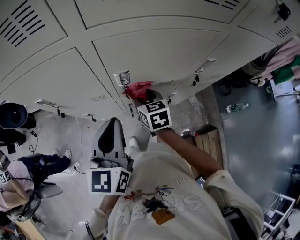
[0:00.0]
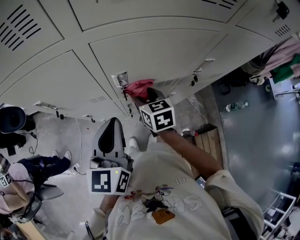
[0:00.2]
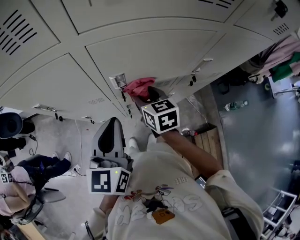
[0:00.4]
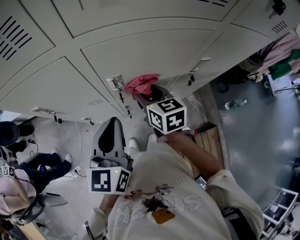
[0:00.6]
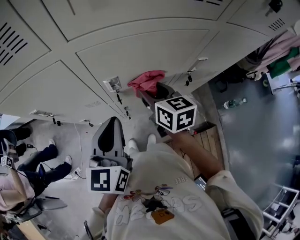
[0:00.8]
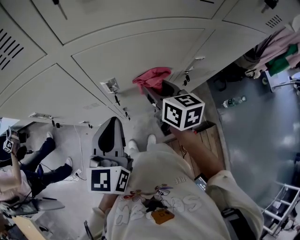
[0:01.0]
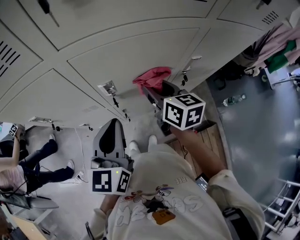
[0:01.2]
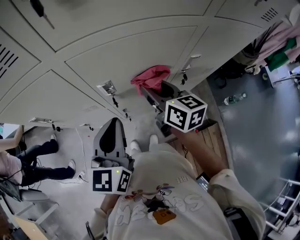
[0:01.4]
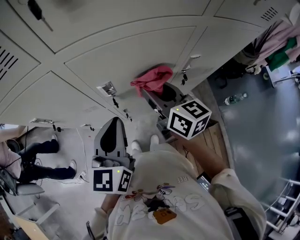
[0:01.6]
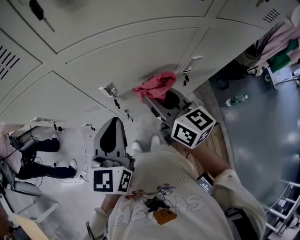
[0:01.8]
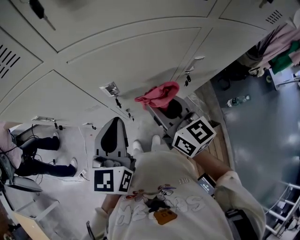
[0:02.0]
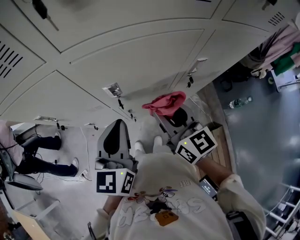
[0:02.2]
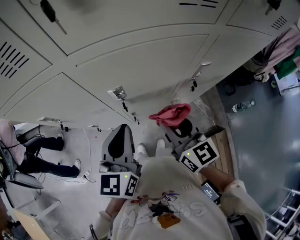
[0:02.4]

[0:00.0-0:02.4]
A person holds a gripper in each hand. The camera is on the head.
0:00.0 to 0:01.2: The right gripper heads upward and to the right, covering roughly 15 cm, and swivels approximately 20 degrees.
0:01.2 to 0:02.4: The right gripper is displaced backward by some 10 cm.

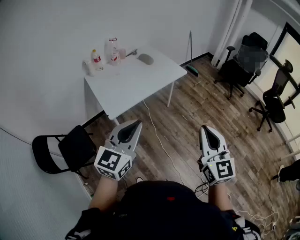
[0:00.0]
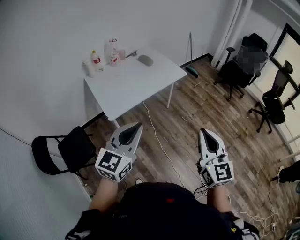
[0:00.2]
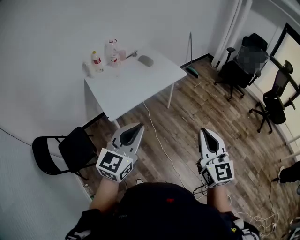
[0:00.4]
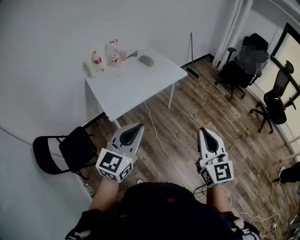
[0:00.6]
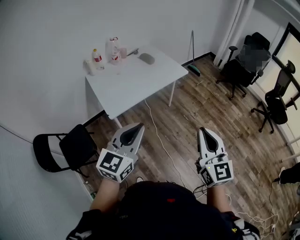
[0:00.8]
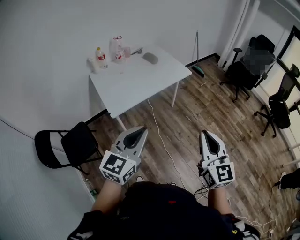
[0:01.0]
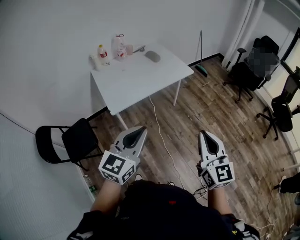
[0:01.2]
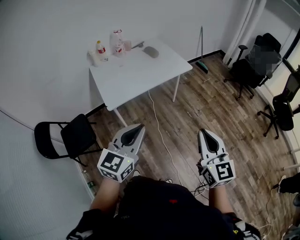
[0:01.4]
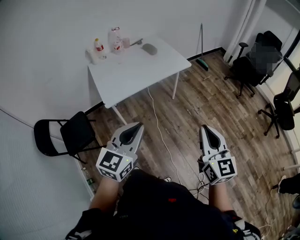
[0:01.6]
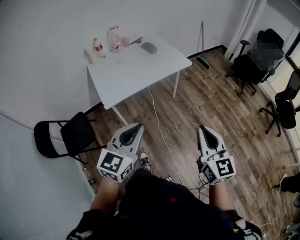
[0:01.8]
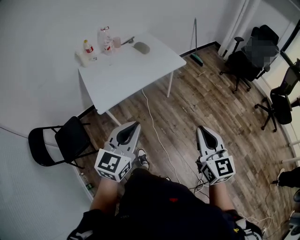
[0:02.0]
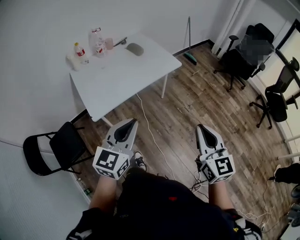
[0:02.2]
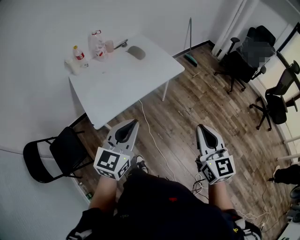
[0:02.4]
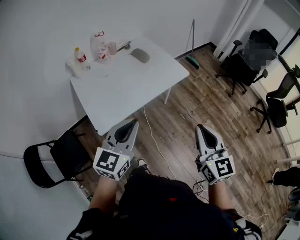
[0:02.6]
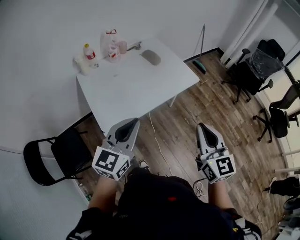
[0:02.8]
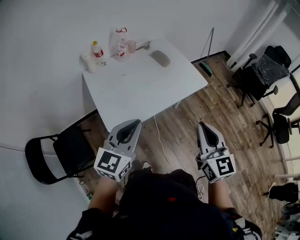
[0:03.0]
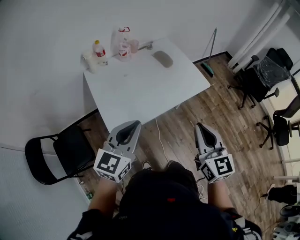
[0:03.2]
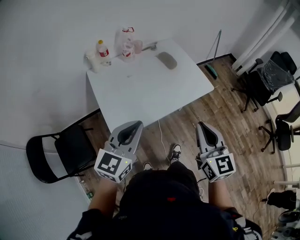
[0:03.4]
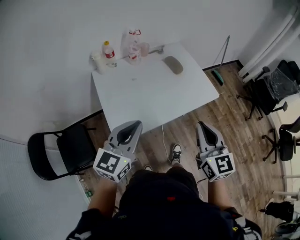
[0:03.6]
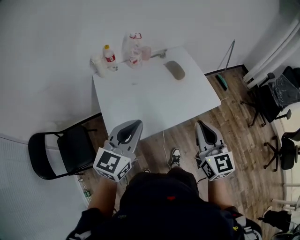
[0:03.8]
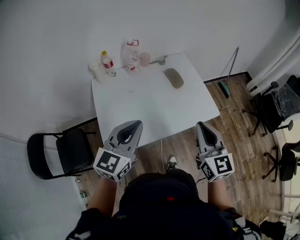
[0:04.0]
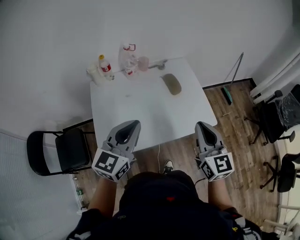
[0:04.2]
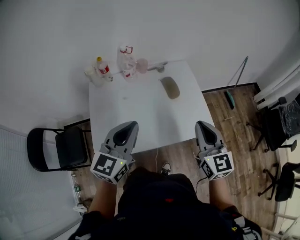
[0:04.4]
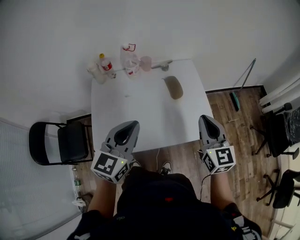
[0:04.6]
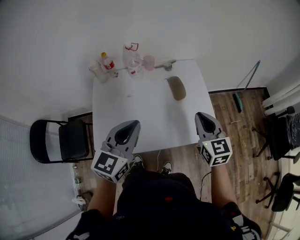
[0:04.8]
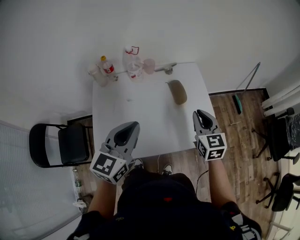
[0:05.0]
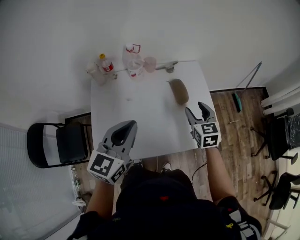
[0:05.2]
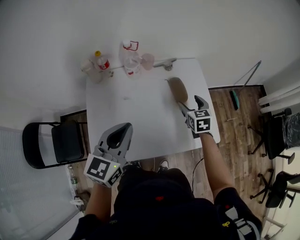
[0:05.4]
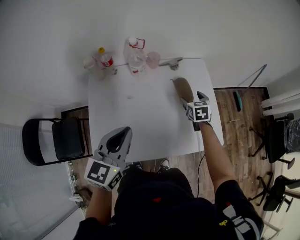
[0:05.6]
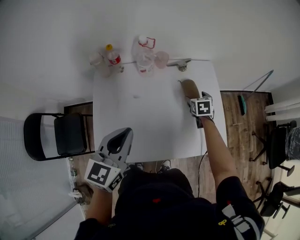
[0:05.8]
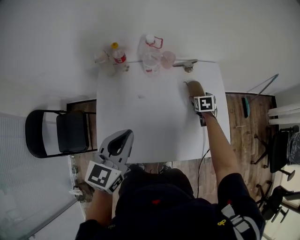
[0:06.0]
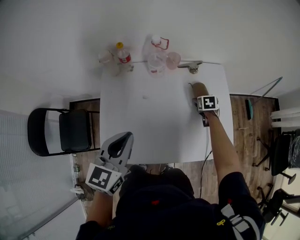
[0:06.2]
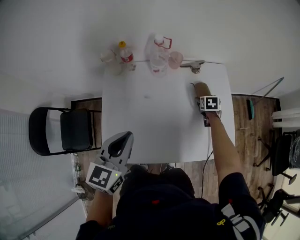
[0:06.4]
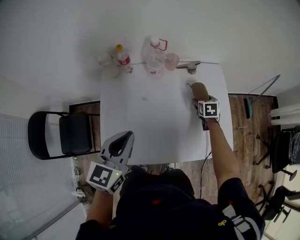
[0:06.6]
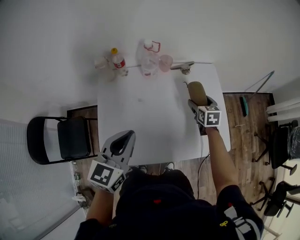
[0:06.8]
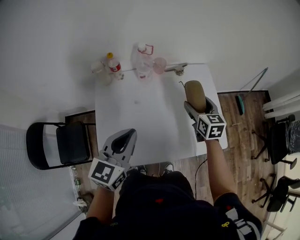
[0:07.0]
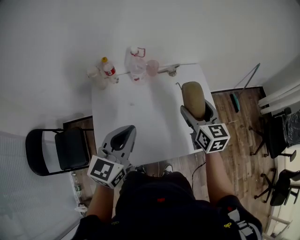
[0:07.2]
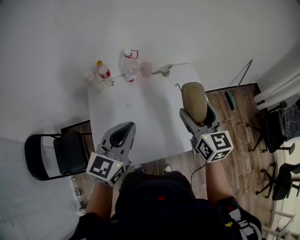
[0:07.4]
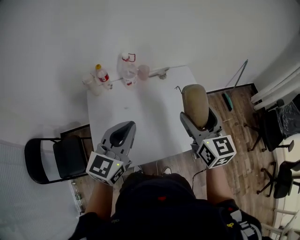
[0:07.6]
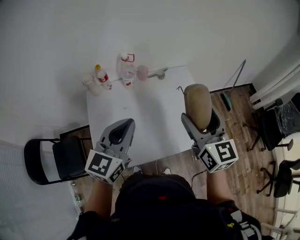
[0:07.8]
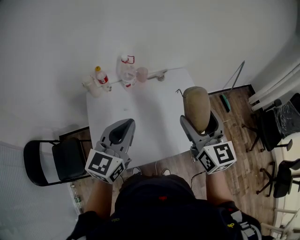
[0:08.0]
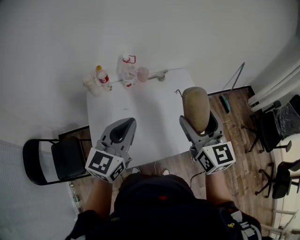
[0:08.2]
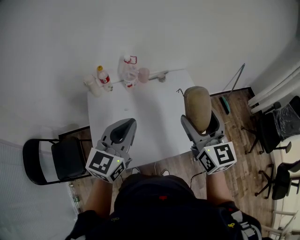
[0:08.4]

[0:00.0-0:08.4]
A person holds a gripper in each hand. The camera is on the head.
0:00.0 to 0:01.4: Both grippers travel together to the right, about 5 cm.
0:01.4 to 0:02.8: Both grippers move forward and to the left, some 25 cm.
0:02.8 to 0:04.2: Both grippers travel together forward, some 25 cm.
0:04.2 to 0:05.6: The right gripper is displaced forward and downward by approximately 40 cm, angles its fingers downward, by roughly 40 degrees, and opens up. Meanwhile the left gripper is displaced forward and downward by roughly 15 cm.
0:05.6 to 0:07.0: The right gripper shifts approximately 10 cm upward.
0:07.0 to 0:08.4: The right gripper is displaced upward and backward by roughly 25 cm, and swivels roughly 30 degrees; the left gripper heads upward, covering approximately 5 cm.

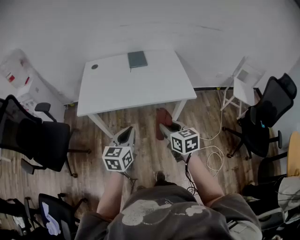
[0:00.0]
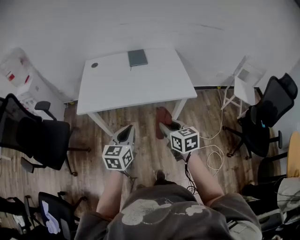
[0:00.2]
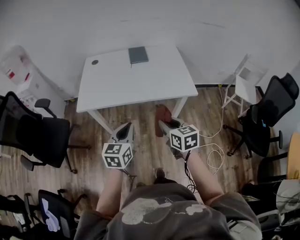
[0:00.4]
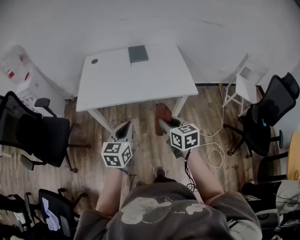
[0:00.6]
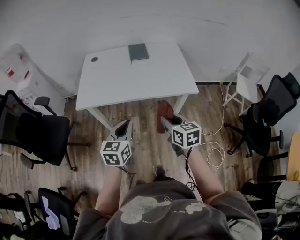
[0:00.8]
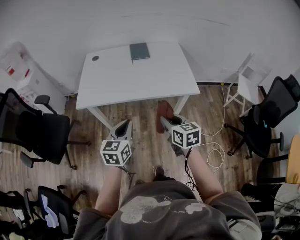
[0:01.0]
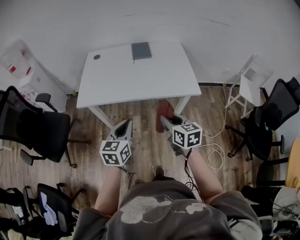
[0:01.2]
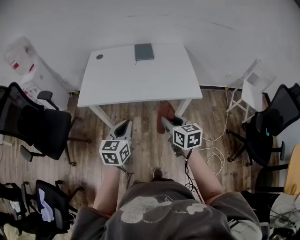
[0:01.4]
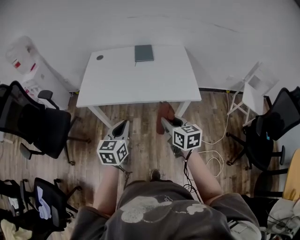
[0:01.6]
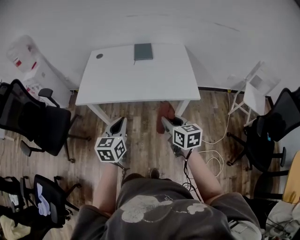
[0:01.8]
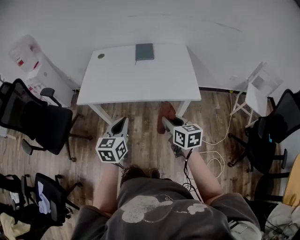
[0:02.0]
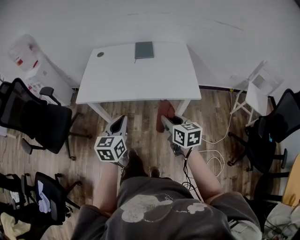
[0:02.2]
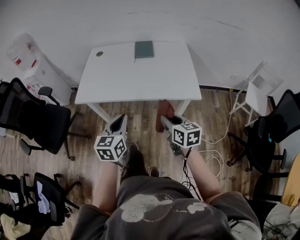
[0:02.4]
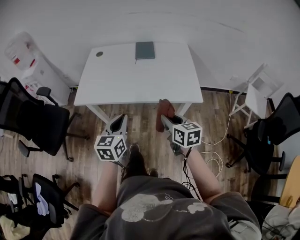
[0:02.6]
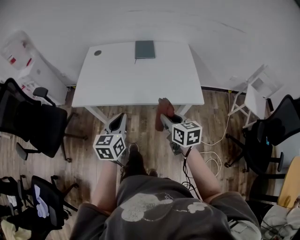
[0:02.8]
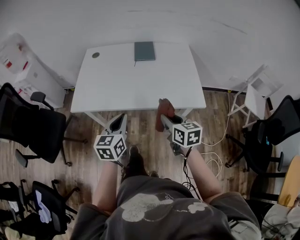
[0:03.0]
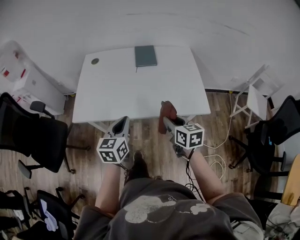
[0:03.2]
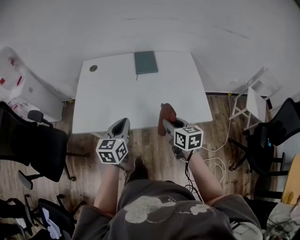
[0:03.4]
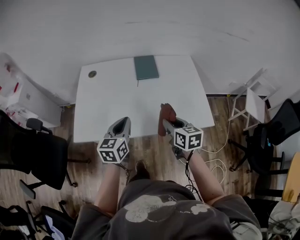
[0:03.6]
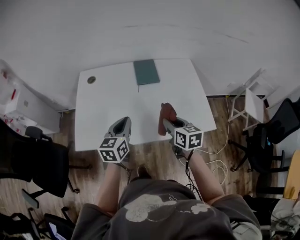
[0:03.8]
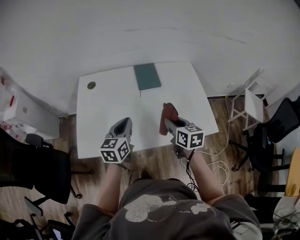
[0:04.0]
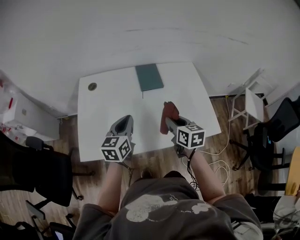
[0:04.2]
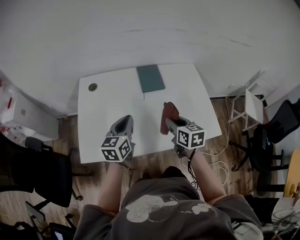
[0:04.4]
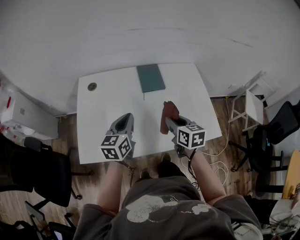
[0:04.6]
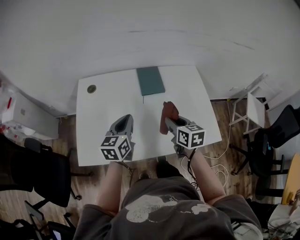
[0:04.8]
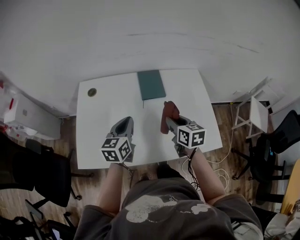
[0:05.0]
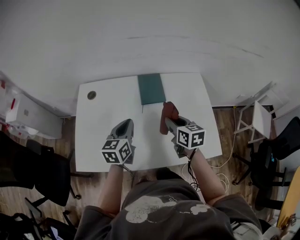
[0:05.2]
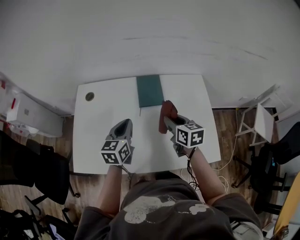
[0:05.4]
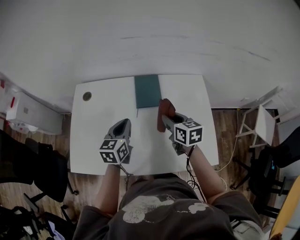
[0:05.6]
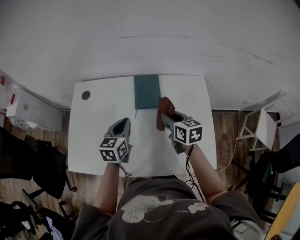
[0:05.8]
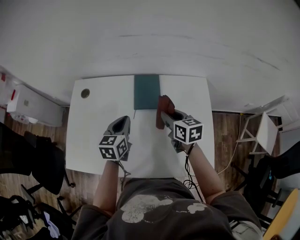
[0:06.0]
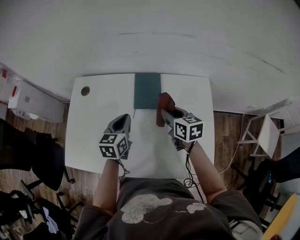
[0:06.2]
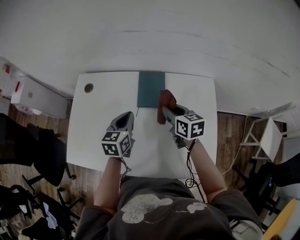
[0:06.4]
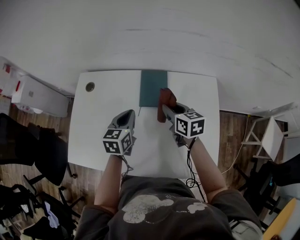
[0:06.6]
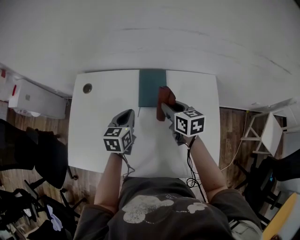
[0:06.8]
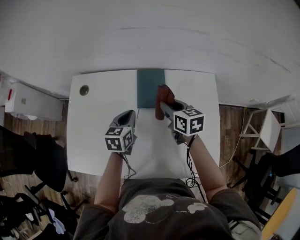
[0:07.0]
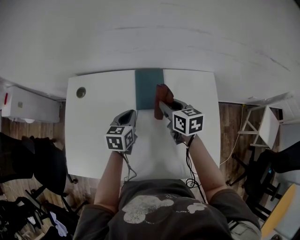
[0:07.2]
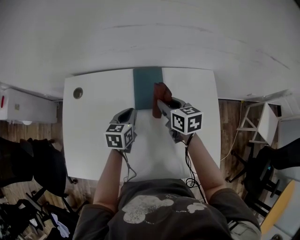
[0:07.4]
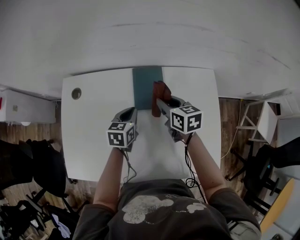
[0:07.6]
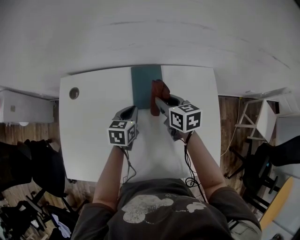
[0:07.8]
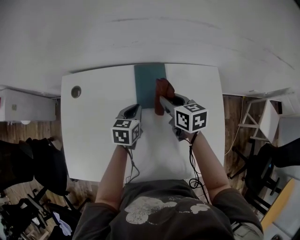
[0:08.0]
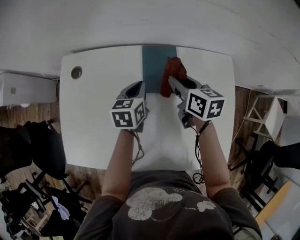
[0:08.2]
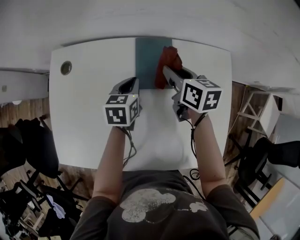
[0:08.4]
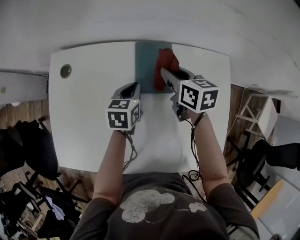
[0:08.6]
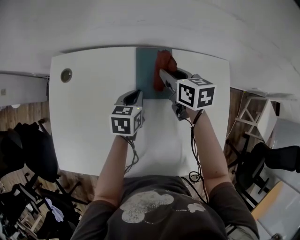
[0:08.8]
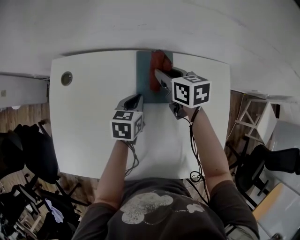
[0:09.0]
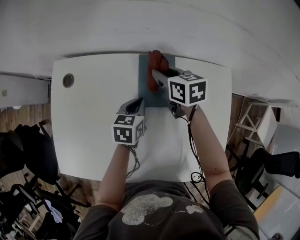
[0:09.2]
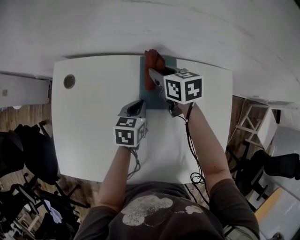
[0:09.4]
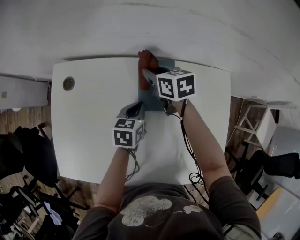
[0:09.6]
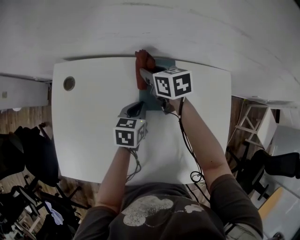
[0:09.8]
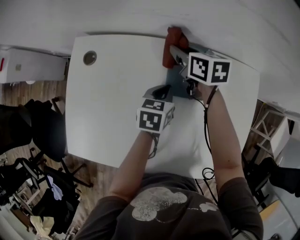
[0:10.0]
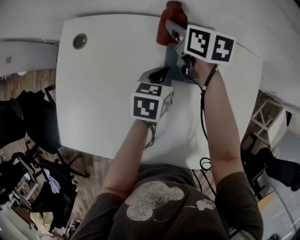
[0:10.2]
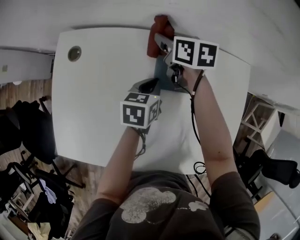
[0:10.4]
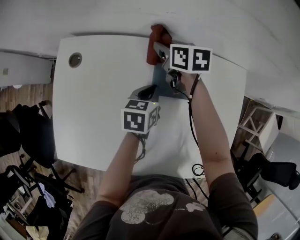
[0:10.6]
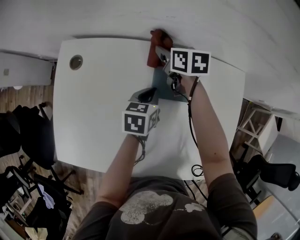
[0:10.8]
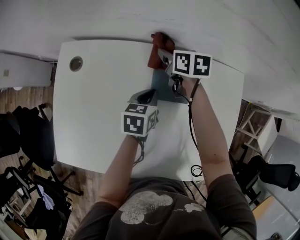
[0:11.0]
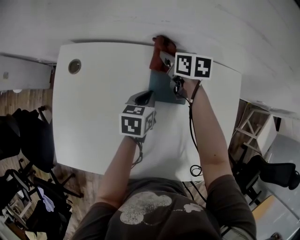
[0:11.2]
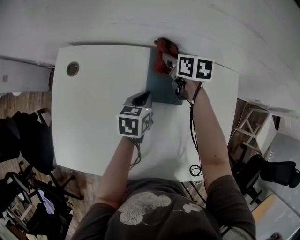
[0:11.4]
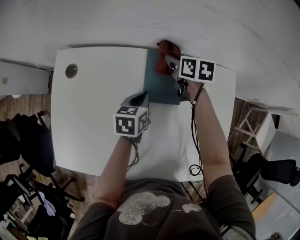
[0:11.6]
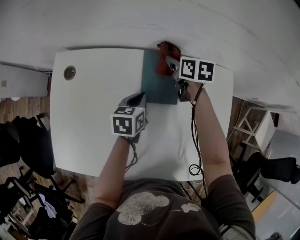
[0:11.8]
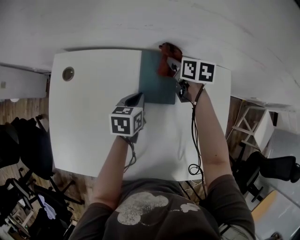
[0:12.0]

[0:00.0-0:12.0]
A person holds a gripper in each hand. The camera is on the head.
0:00.0 to 0:01.6: The left gripper moves roughly 5 cm, while the right gripper shifts approximately 10 cm forward and to the right.
0:01.6 to 0:03.0: Both grippers move forward, some 10 cm.
0:03.0 to 0:04.4: The grippers both shift forward by some 25 cm.
0:04.4 to 0:06.0: Both grippers travel together forward and to the right, some 20 cm.
0:06.0 to 0:07.6: The right gripper travels forward by roughly 10 cm. Meanwhile the left gripper shifts about 15 cm downward and forward.
0:07.6 to 0:09.0: The left gripper shifts by approximately 5 cm; the right gripper travels forward by approximately 10 cm.
0:09.0 to 0:10.4: The right gripper travels to the left and forward by about 10 cm.
0:10.4 to 0:12.0: The right gripper heads to the right, covering some 15 cm.

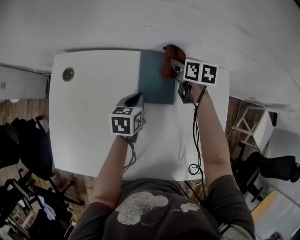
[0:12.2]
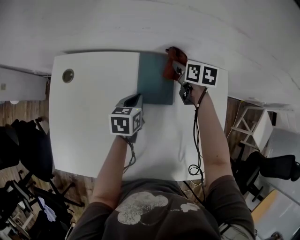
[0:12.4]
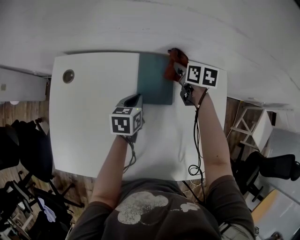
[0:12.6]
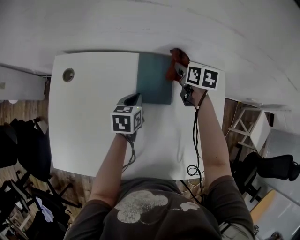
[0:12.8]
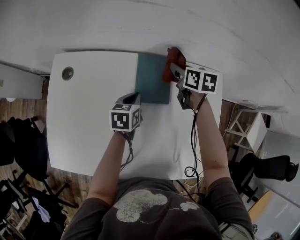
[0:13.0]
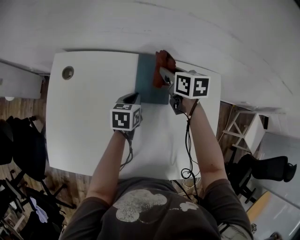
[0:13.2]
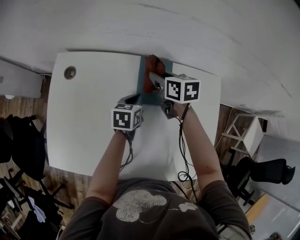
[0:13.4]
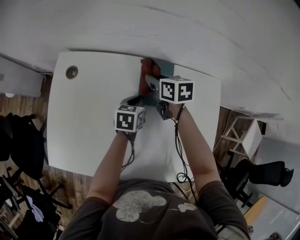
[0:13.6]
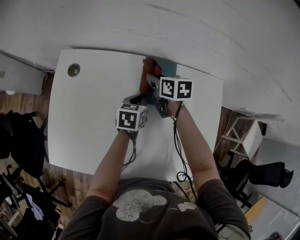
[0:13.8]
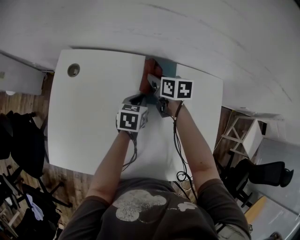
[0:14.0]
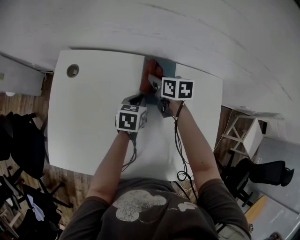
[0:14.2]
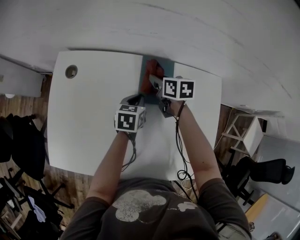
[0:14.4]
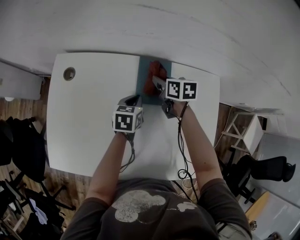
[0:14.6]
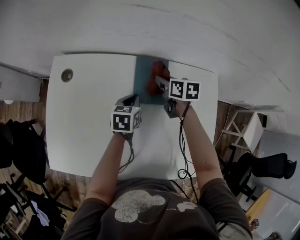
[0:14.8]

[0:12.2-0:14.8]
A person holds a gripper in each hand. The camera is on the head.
0:12.2 to 0:13.4: The right gripper shifts some 10 cm to the left, backward and upward.
0:13.4 to 0:14.8: The right gripper goes some 5 cm to the right.
